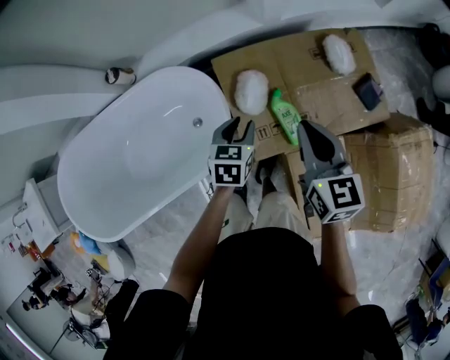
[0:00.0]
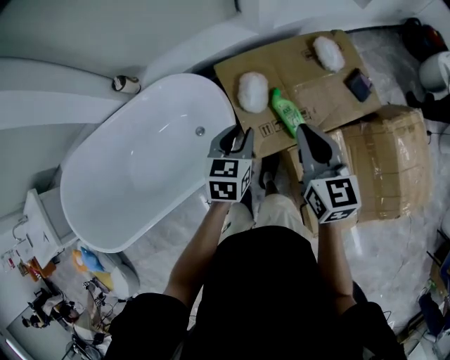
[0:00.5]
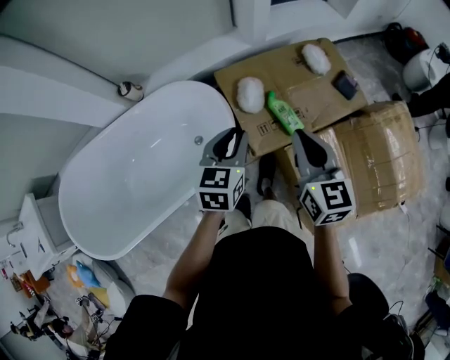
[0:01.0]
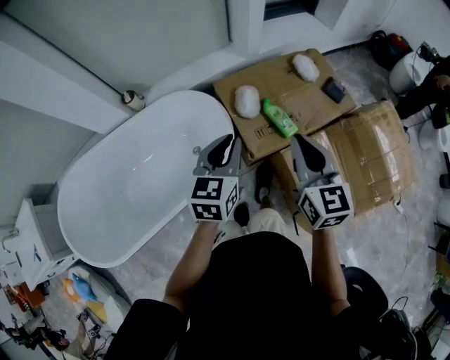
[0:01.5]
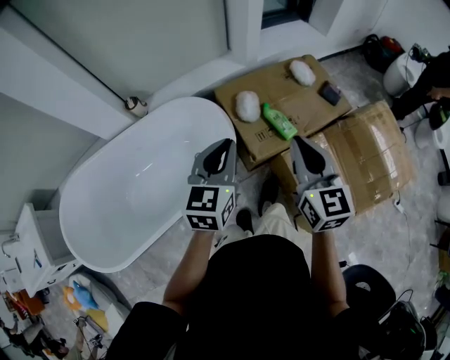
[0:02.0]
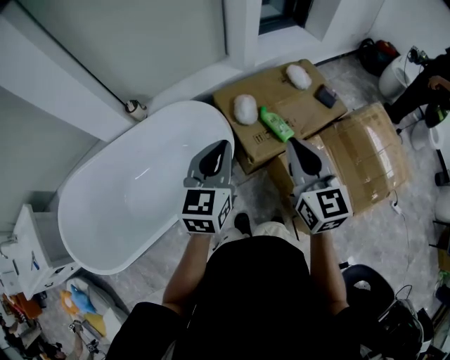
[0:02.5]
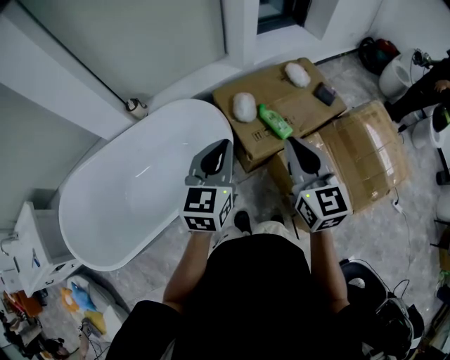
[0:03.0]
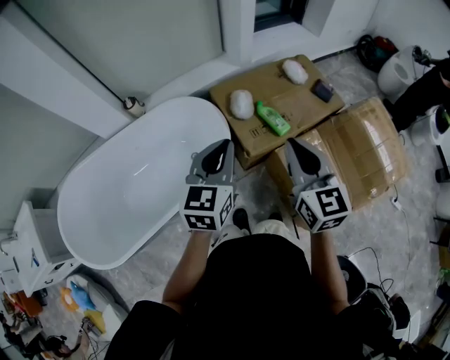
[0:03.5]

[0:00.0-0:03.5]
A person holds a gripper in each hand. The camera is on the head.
0:00.0 to 0:02.0: The left gripper travels upward and backward by some 35 cm, tilts its fingers about 30 degrees upward, and closes its fingers, while the right gripper is displaced backward and upward by approximately 30 cm, and swivels roughly 20 degrees.
0:02.0 to 0:03.5: The right gripper shifts by some 5 cm.

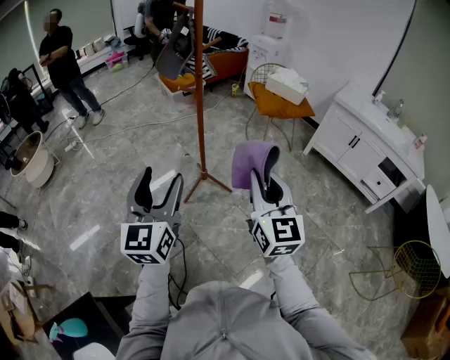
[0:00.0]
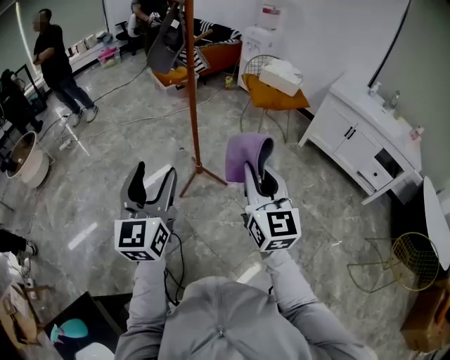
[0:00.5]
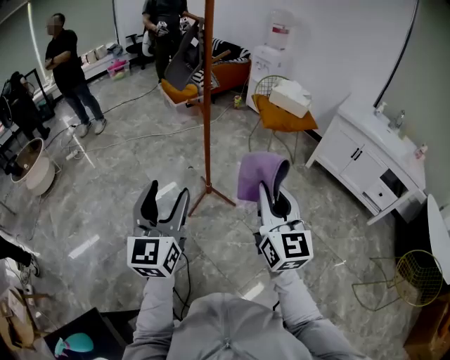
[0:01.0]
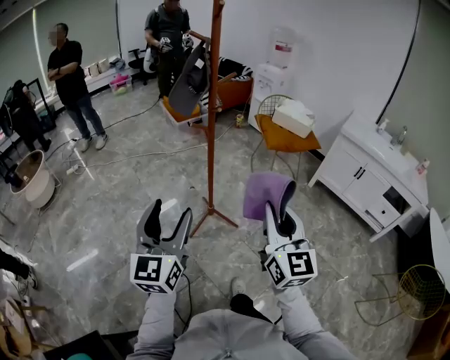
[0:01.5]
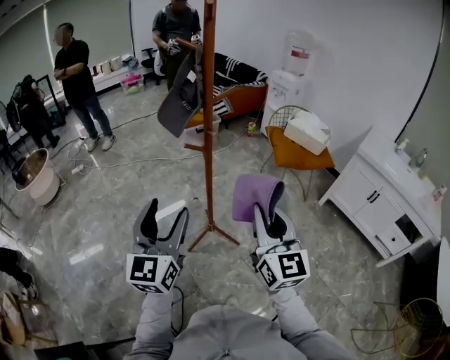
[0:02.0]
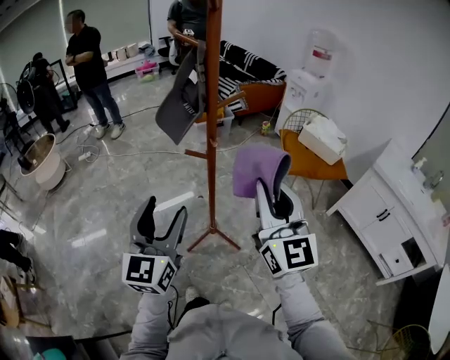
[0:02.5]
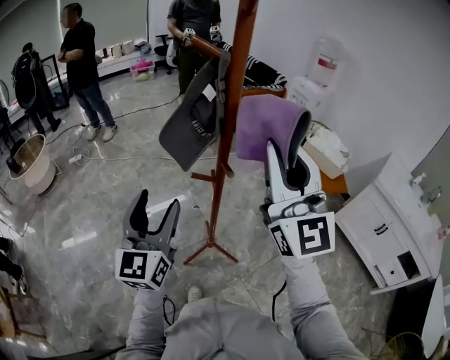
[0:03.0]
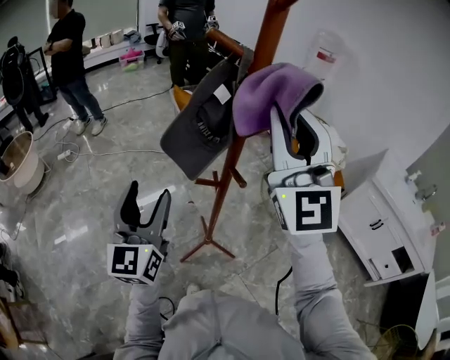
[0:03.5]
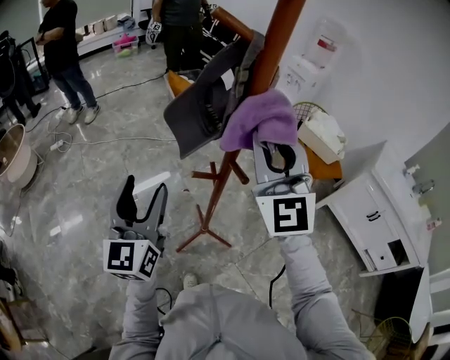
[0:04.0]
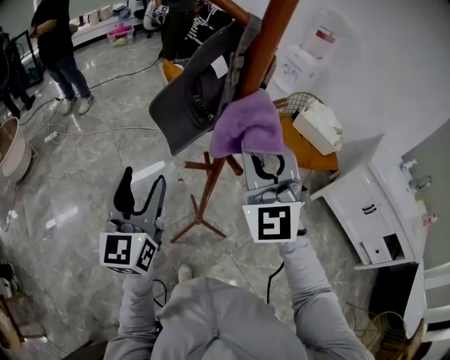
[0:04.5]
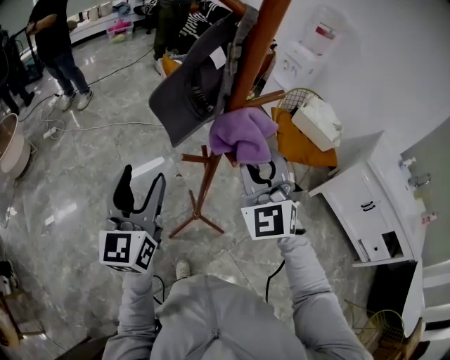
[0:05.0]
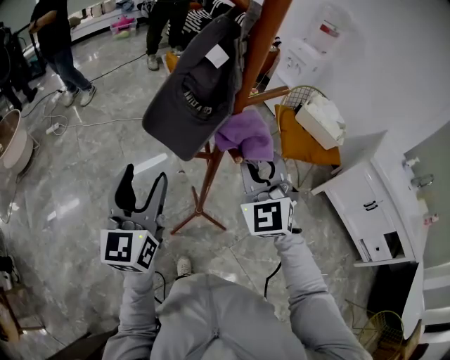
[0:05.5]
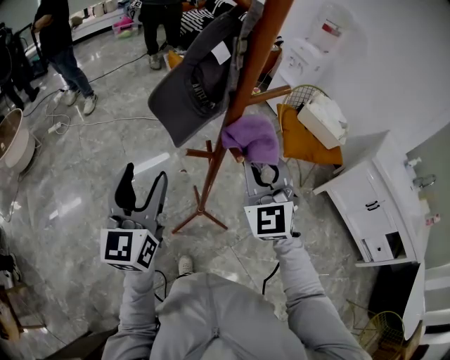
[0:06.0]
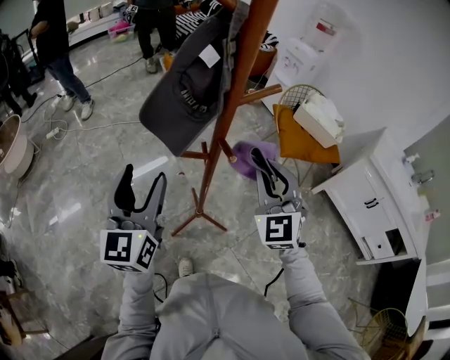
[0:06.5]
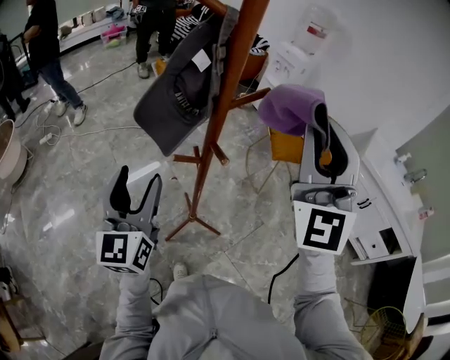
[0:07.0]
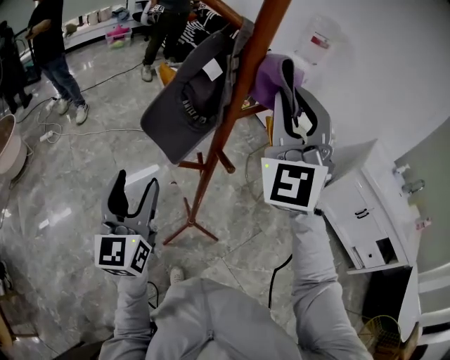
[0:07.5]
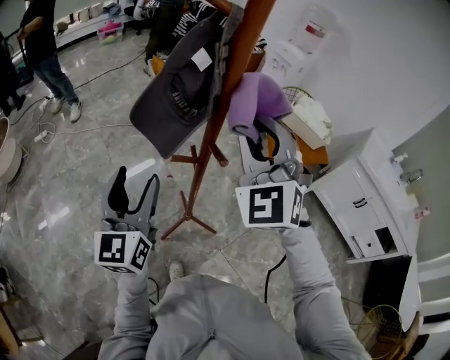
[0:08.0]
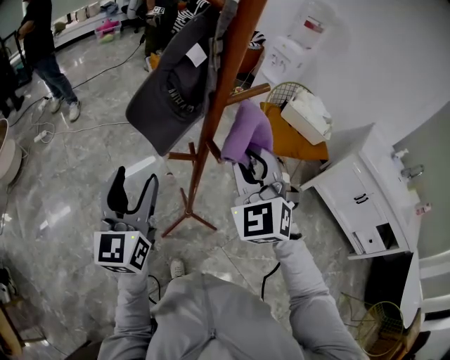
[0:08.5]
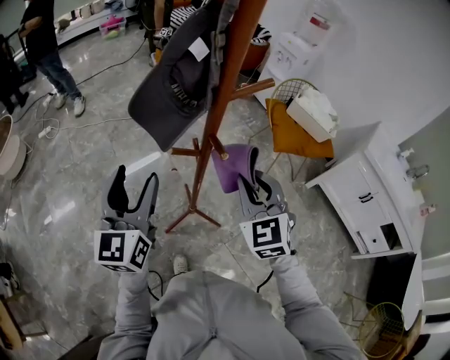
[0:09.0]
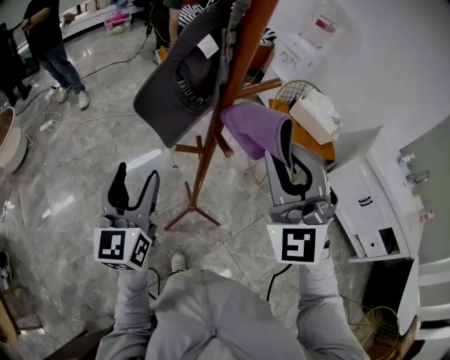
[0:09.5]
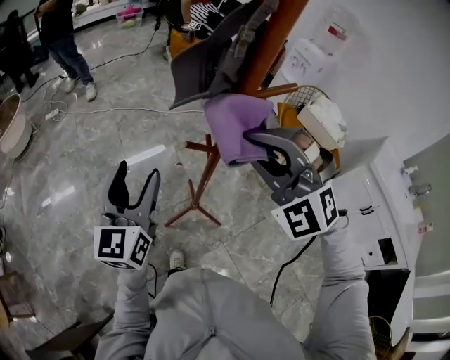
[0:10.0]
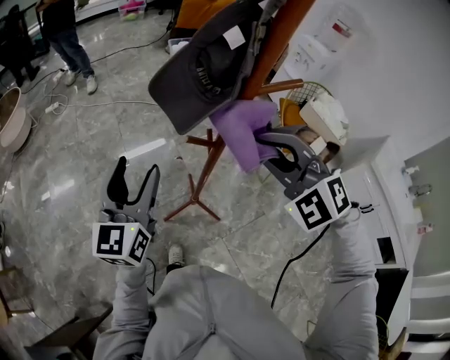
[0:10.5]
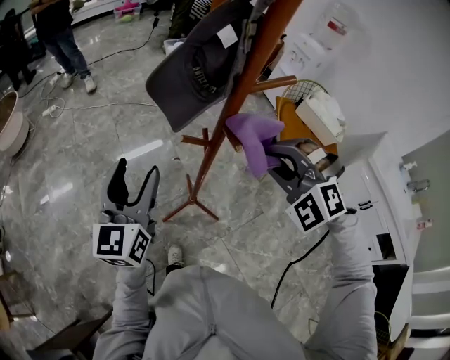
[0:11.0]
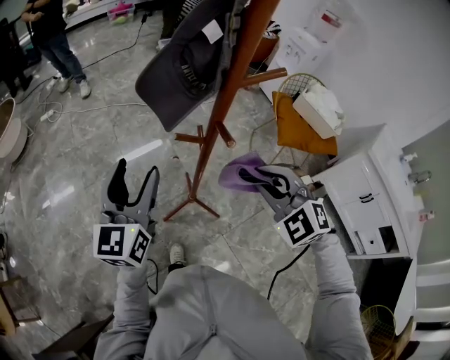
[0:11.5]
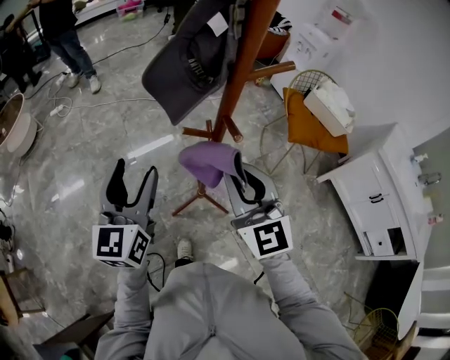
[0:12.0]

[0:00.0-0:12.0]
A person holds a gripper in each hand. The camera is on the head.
0:00.0 to 0:02.0: The grippers both shift forward by approximately 20 cm.
0:02.0 to 0:04.0: The grippers both shift forward by approximately 30 cm. The right gripper turns by some 30 degrees.
0:04.0 to 0:06.0: The right gripper moves downward, approximately 15 cm.
0:06.0 to 0:08.0: The right gripper goes some 10 cm upward.
0:08.0 to 0:10.0: The right gripper swings up and down, some 15 cm each way, with 2 reversals, and turns by approximately 40 degrees.
0:10.0 to 0:12.0: The right gripper shifts some 10 cm downward, and twists approximately 50 degrees clockwise, seen from behind.

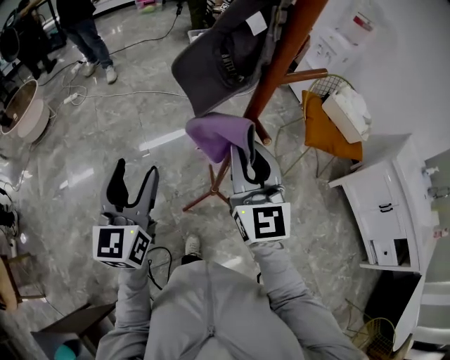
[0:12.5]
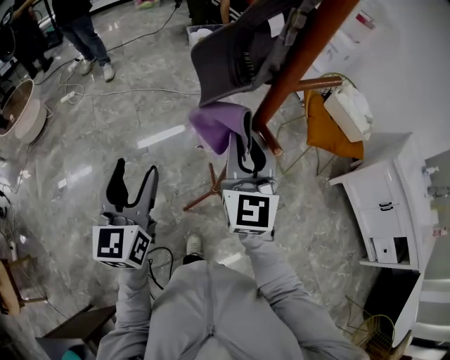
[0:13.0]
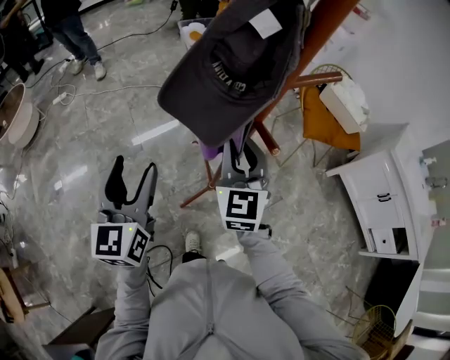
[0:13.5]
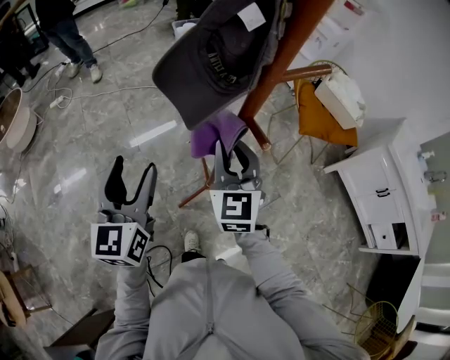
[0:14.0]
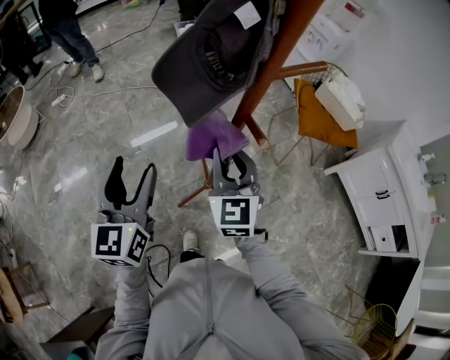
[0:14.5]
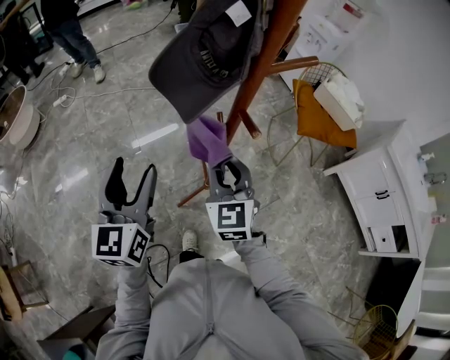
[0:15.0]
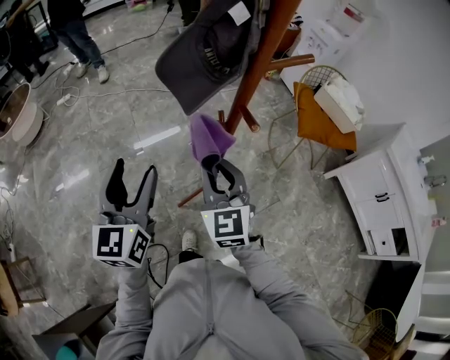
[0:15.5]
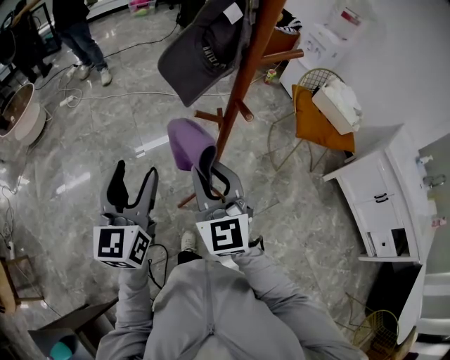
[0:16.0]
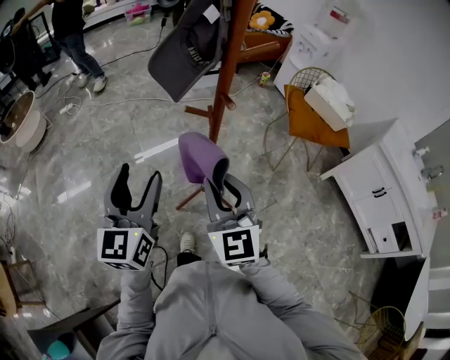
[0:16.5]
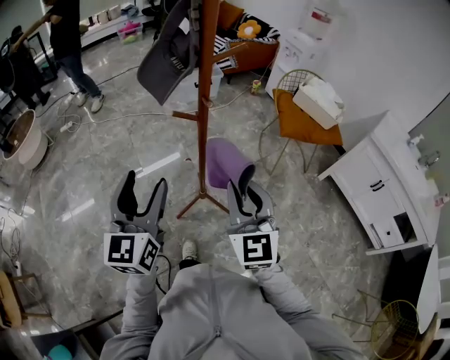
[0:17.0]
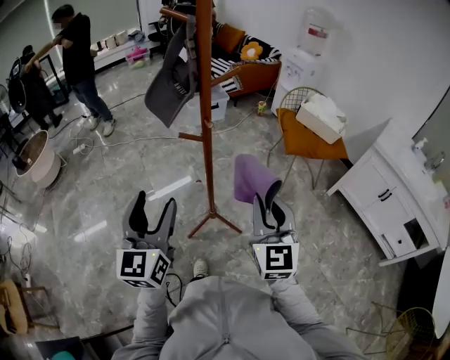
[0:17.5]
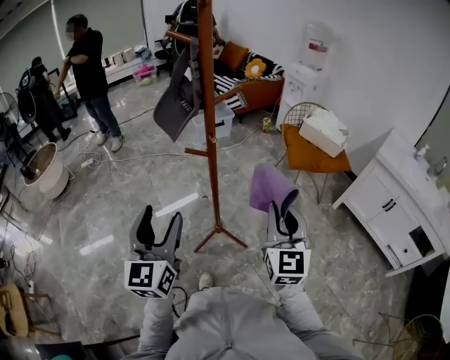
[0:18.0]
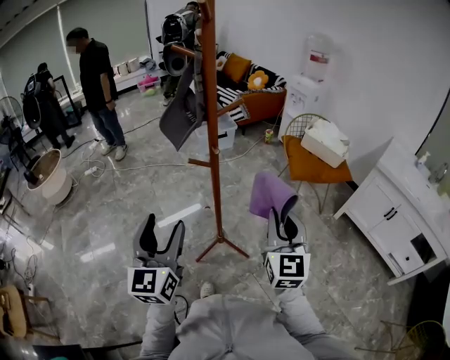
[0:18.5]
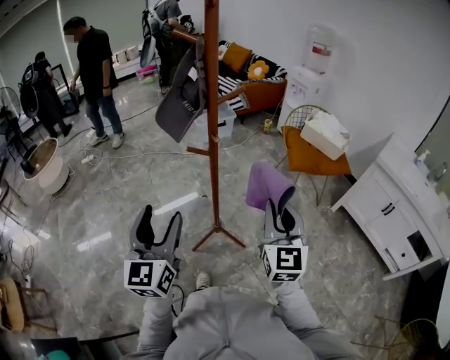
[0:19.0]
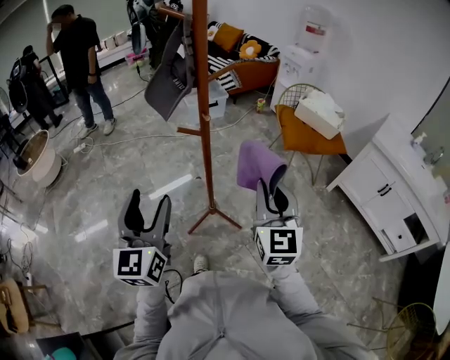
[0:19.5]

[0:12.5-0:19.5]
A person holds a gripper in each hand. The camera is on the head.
0:12.5 to 0:14.5: The right gripper travels downward by roughly 10 cm.
0:14.5 to 0:16.0: Both grippers move backward, some 10 cm.
0:16.0 to 0:17.5: The left gripper travels backward and to the right by roughly 10 cm. The right gripper moves to the right and backward, about 25 cm, and turns by roughly 20 degrees.
0:17.5 to 0:19.5: The grippers stay close to where they were, moving slightly.

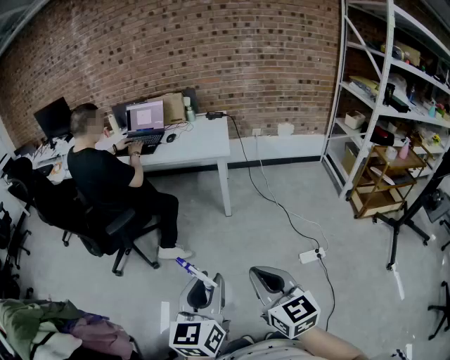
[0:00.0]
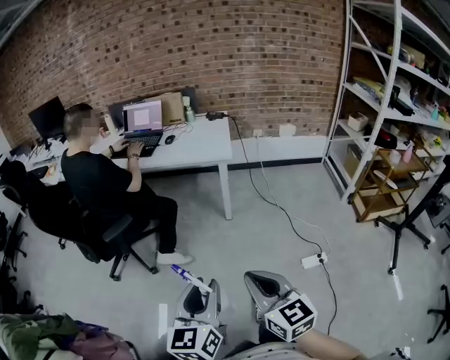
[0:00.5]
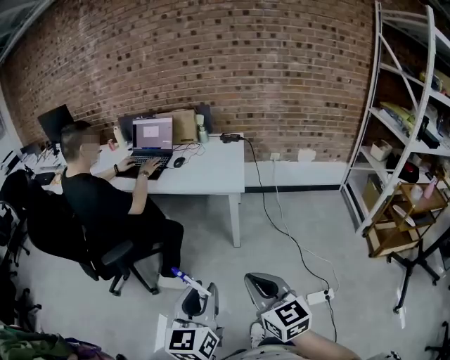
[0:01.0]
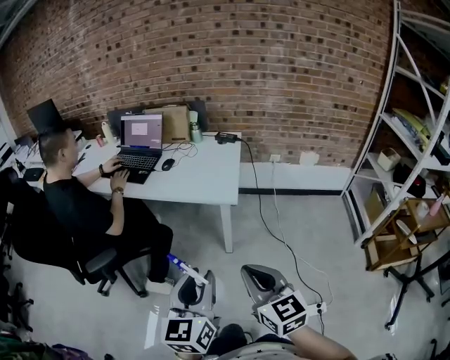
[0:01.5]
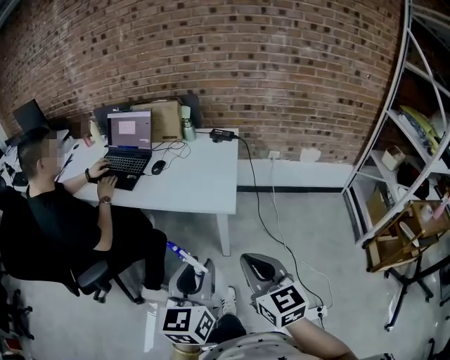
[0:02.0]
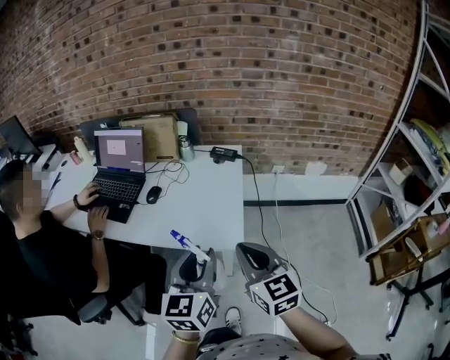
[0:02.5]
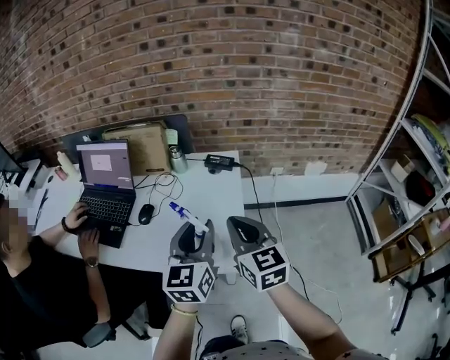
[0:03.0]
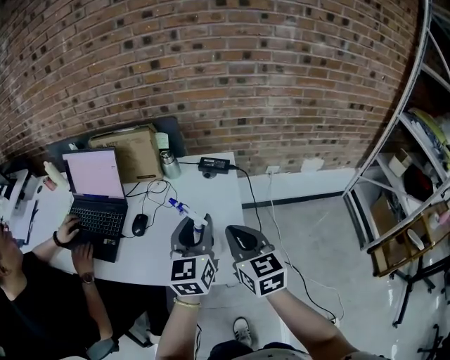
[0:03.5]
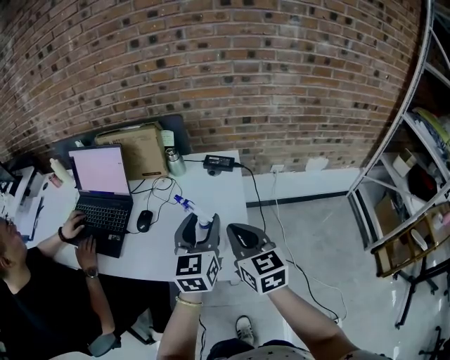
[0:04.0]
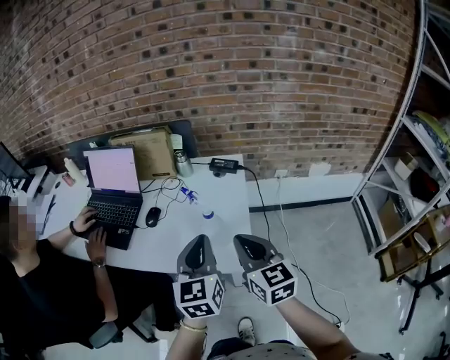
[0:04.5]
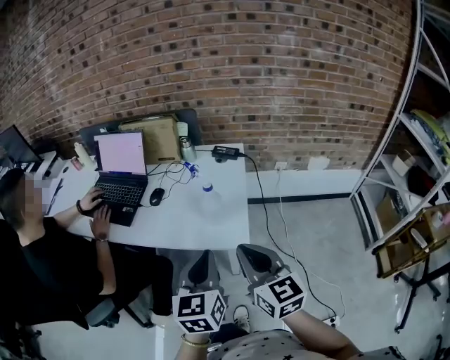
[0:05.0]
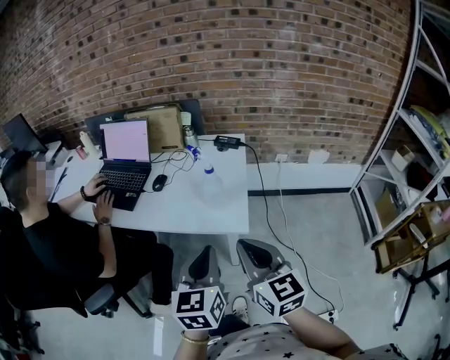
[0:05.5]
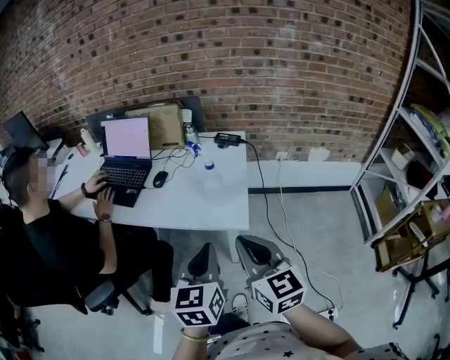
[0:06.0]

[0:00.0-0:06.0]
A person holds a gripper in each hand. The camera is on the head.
0:00.0 to 0:02.0: Both grippers are carried forward, roughly 50 cm.
0:02.0 to 0:04.0: The two grippers travel together, forward, roughly 40 cm.
0:04.0 to 0:06.0: Both grippers travel together backward, some 25 cm. The left gripper closes its fingers.
